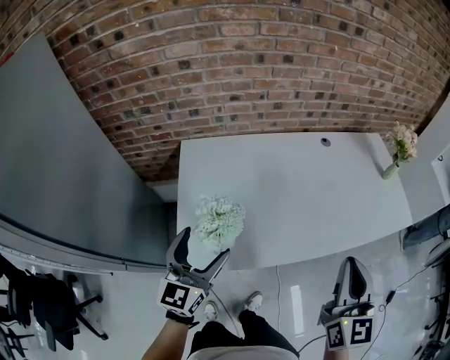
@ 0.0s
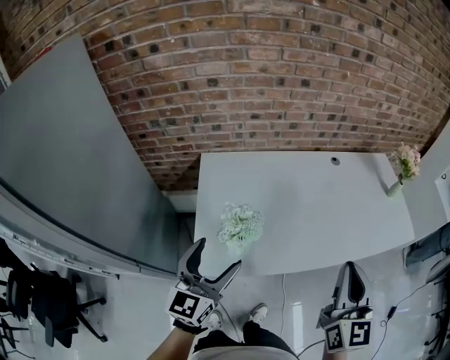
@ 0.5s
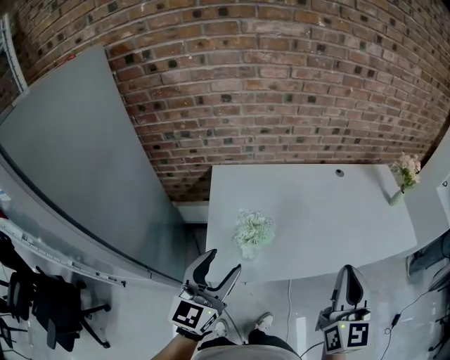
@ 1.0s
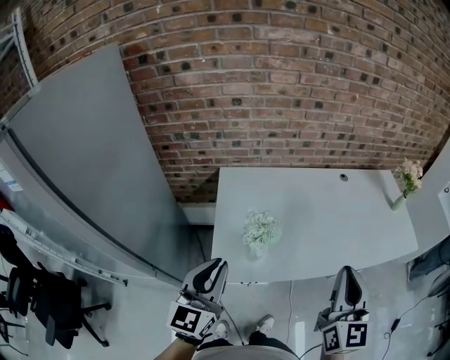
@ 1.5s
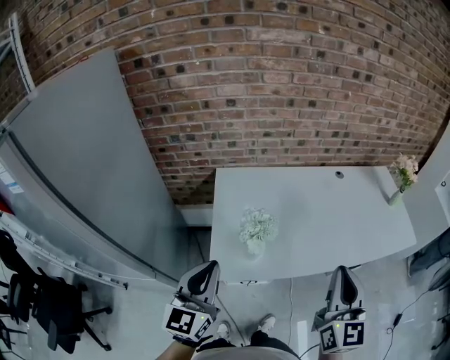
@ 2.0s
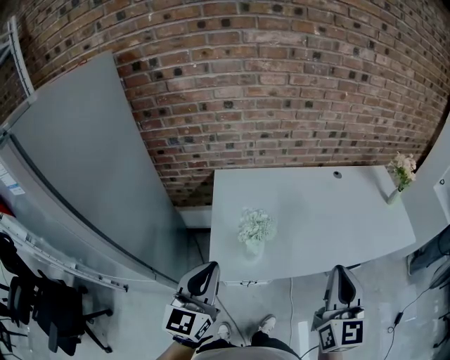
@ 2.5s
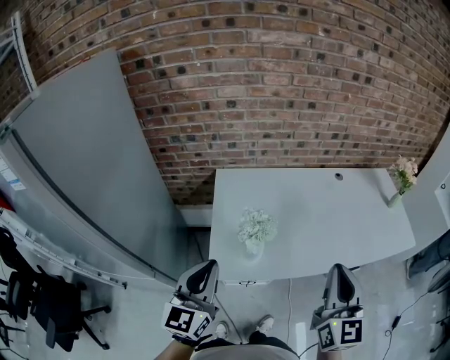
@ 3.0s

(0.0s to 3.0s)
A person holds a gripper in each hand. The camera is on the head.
0.0s - 1.5s: The right gripper goes about 10 cm to the left and upward, while the left gripper heads backward, upward and to the left, covering approximately 15 cm, and closes up.
1.5s - 3.0s: The grippers make only small movements.

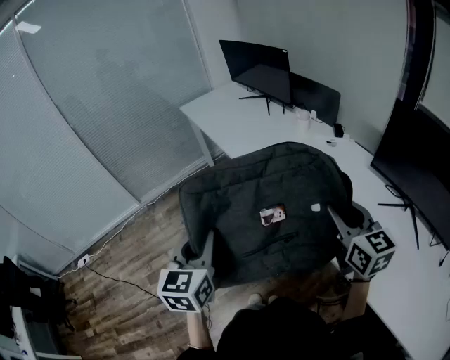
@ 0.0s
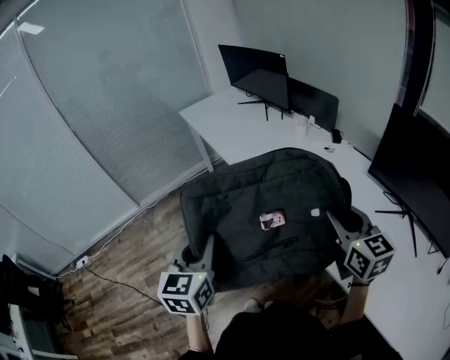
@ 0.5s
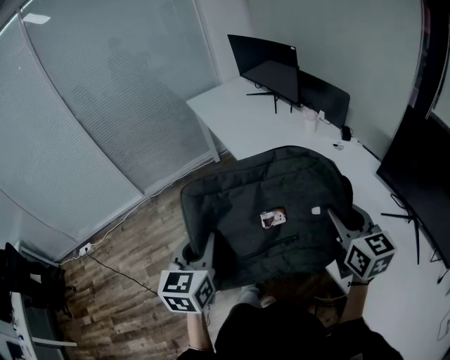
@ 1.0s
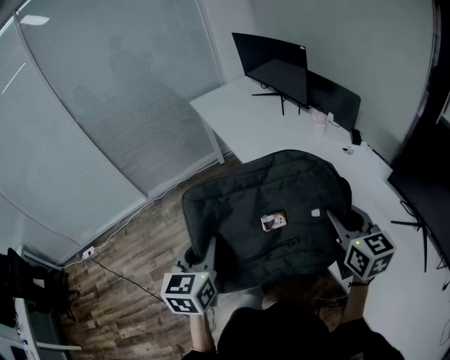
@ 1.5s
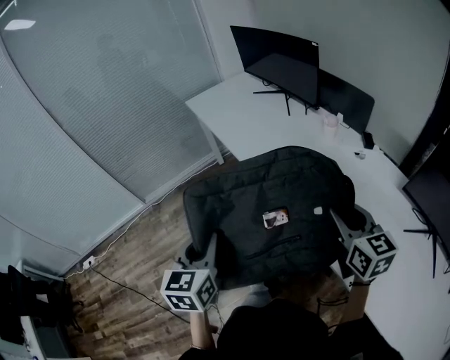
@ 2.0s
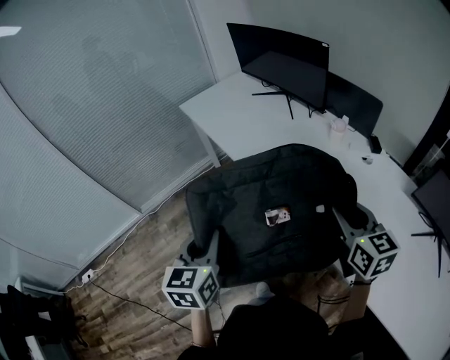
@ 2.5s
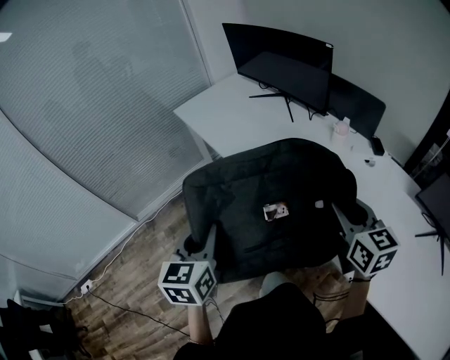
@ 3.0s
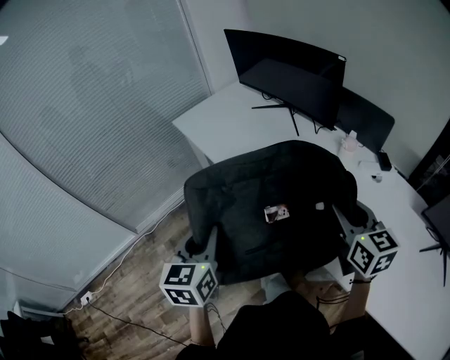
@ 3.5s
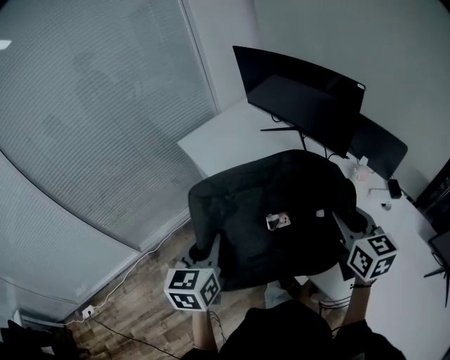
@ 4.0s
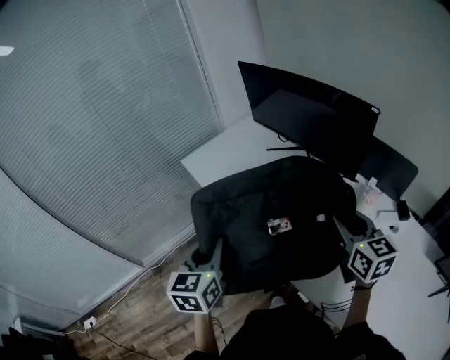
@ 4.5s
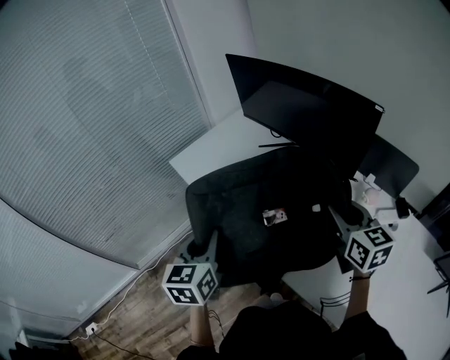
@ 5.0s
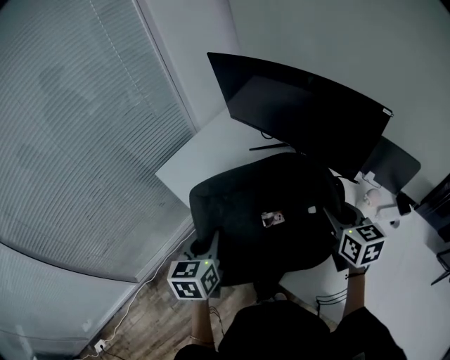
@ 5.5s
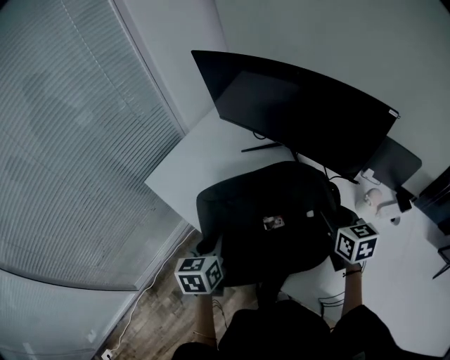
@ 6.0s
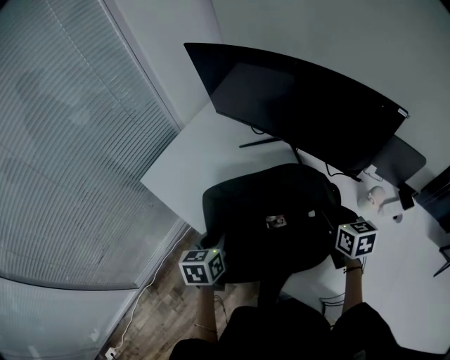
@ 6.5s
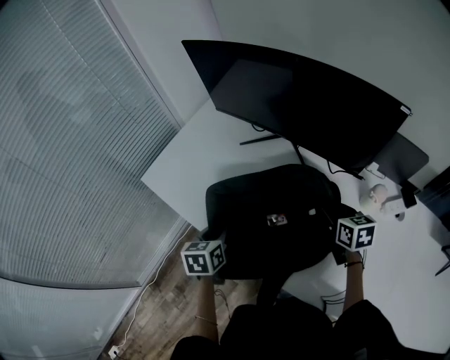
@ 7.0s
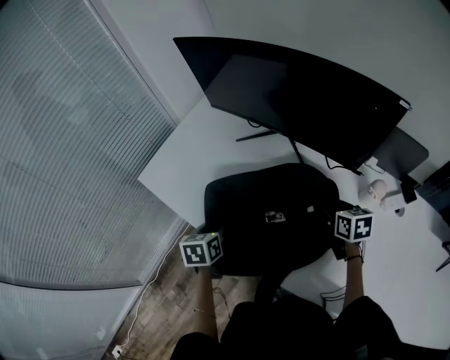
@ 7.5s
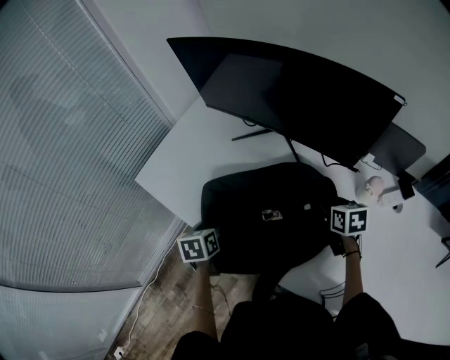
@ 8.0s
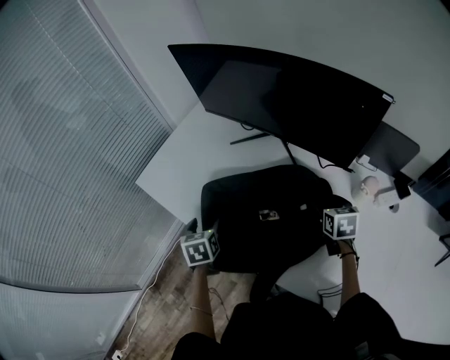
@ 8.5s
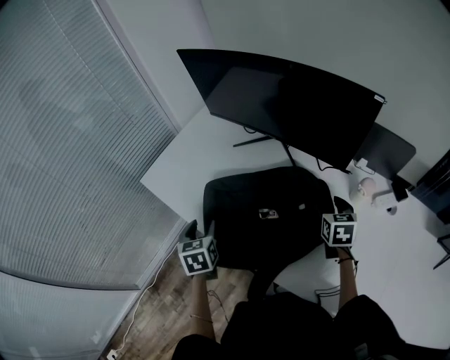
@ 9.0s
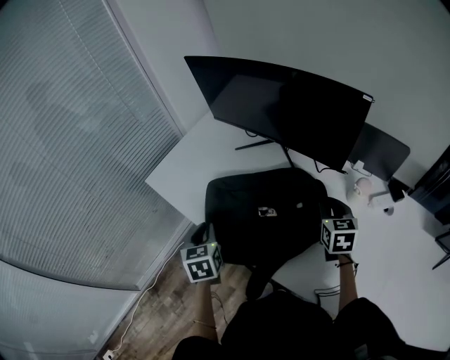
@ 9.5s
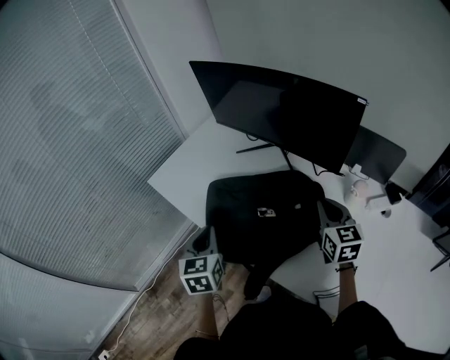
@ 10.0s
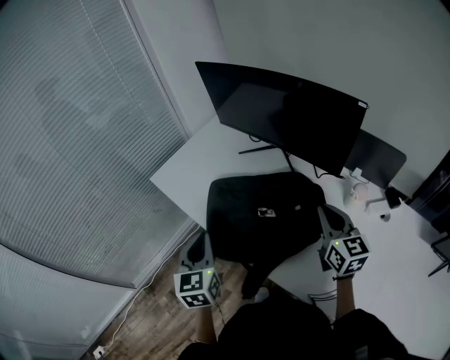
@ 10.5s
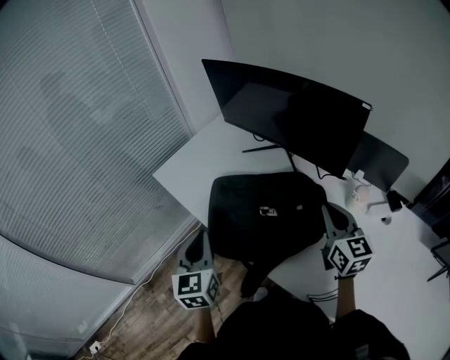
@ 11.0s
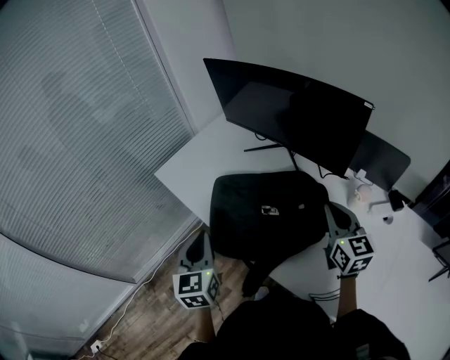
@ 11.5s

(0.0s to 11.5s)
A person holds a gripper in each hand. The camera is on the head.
0.0s - 2.0s: The two grippers go about 15 cm forward.
2.0s - 4.0s: The two grippers go roughly 30 cm forward.
4.0s - 6.0s: The right gripper goes approximately 25 cm forward and downward. Meanwhile the left gripper moves forward, about 30 cm.
6.0s - 7.5s: The right gripper heads downward, covering roughly 10 cm. Meanwhile the left gripper travels downward and forward by approximately 10 cm.
7.5s - 9.5s: The left gripper shifts some 10 cm upward and backward, turns by some 20 degrees, and opens, then closes once more. Meanwhile the right gripper travels upward by about 5 cm, changes its angle by approximately 20 degrees, and opens, then closes once more.
9.5s - 11.5s: The right gripper moves upward and backward, approximately 10 cm, and swivels roughly 30 degrees, while the left gripper goes roughly 10 cm backward and upward.

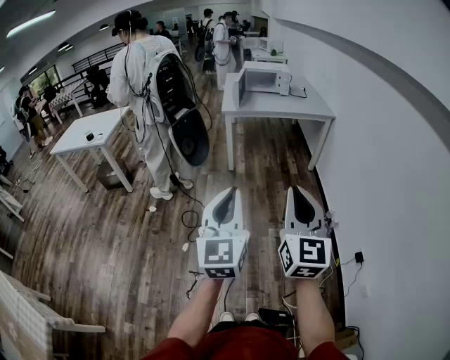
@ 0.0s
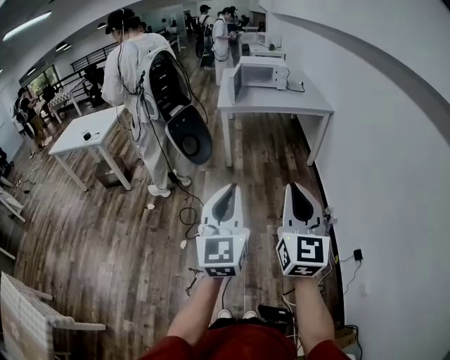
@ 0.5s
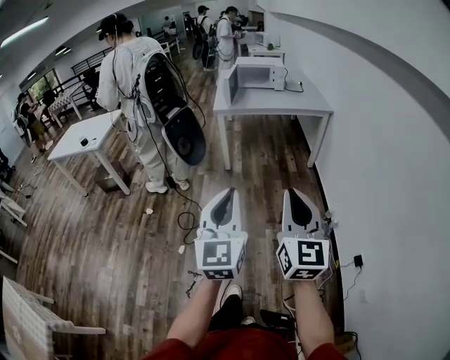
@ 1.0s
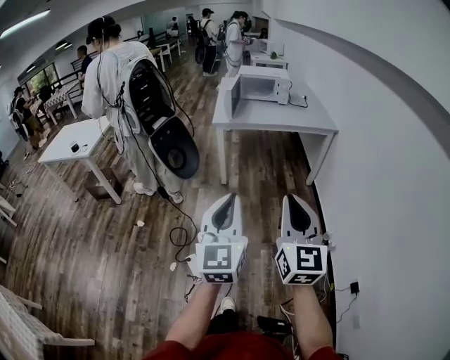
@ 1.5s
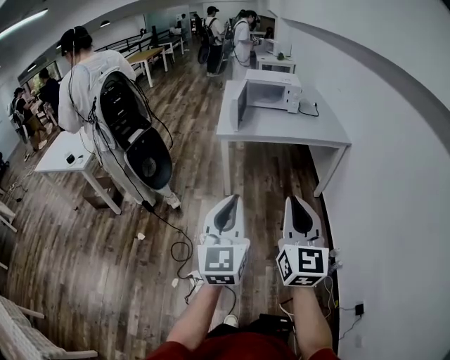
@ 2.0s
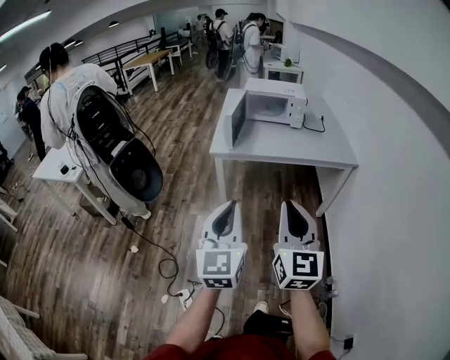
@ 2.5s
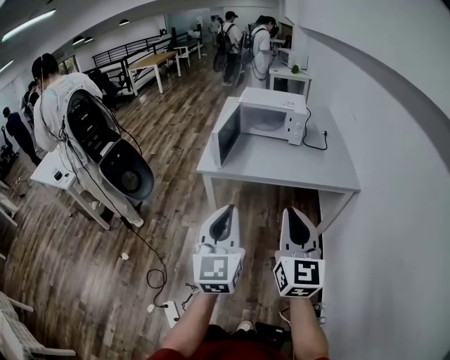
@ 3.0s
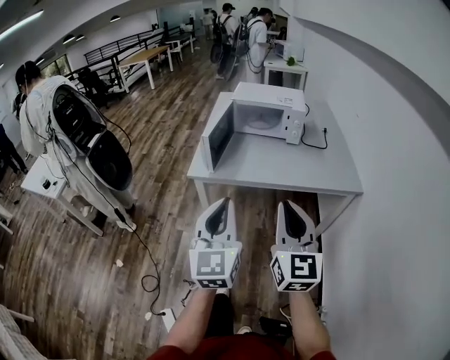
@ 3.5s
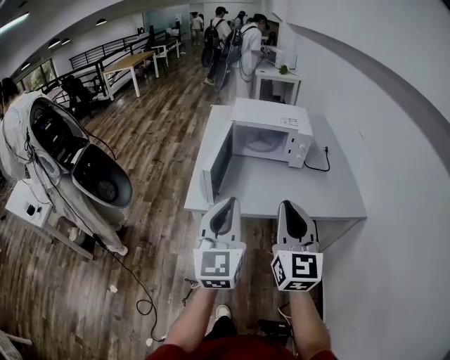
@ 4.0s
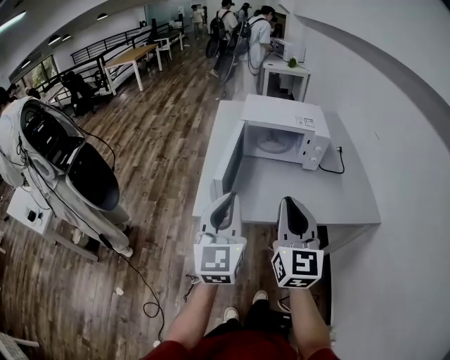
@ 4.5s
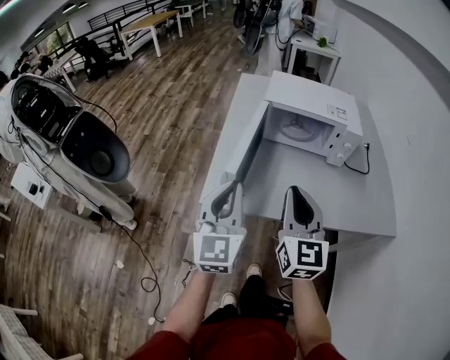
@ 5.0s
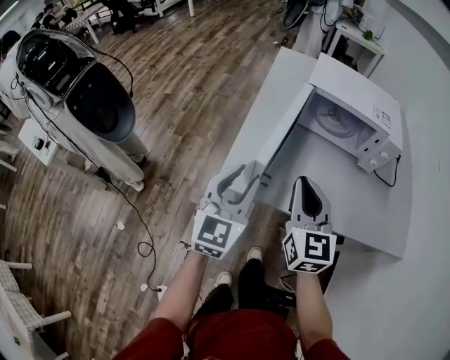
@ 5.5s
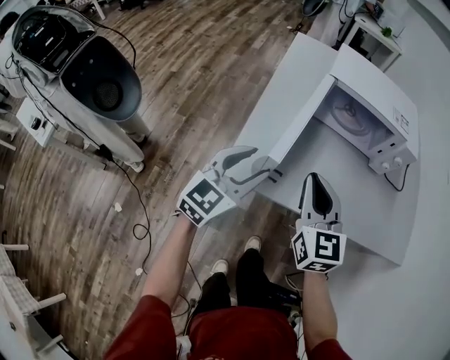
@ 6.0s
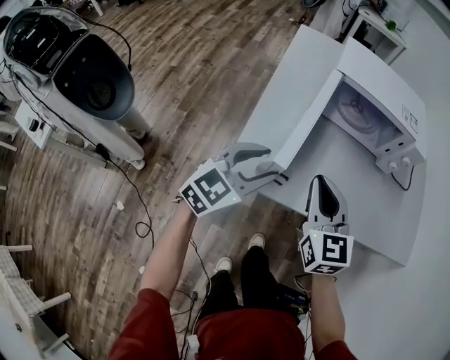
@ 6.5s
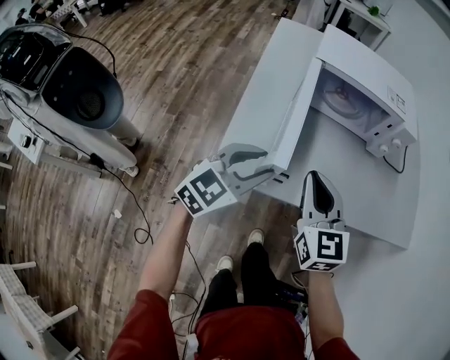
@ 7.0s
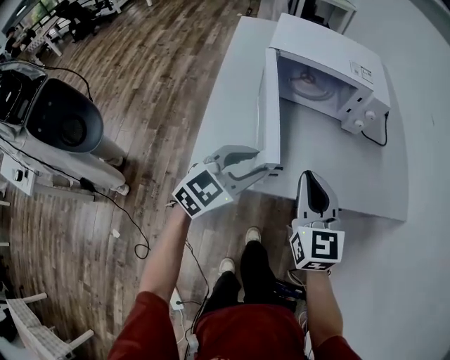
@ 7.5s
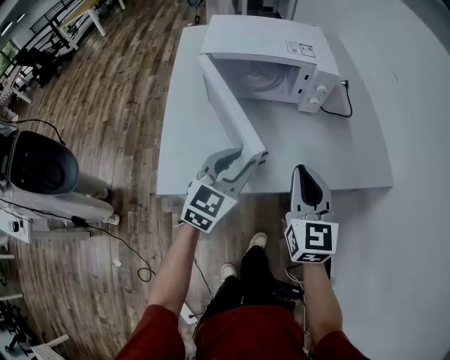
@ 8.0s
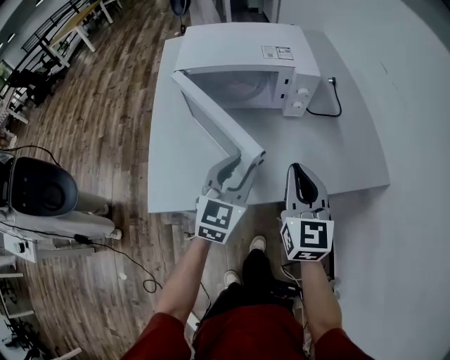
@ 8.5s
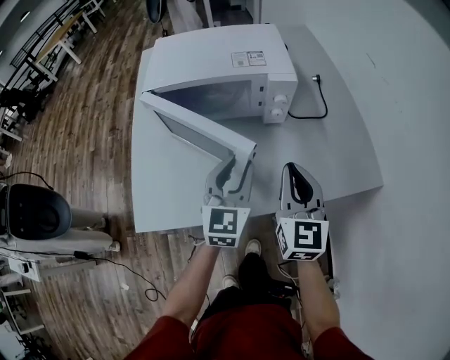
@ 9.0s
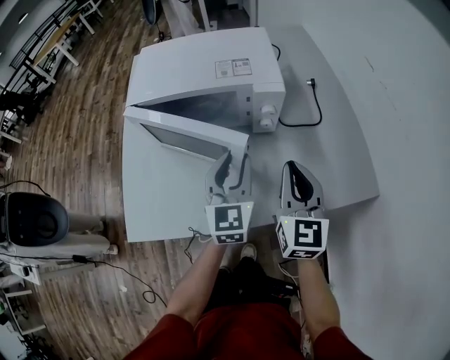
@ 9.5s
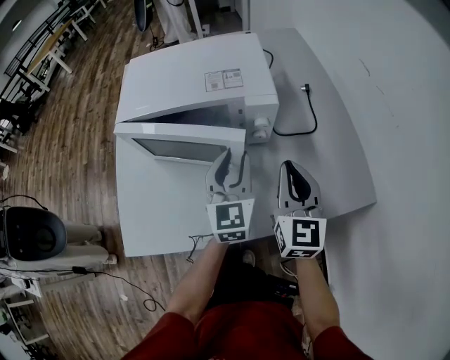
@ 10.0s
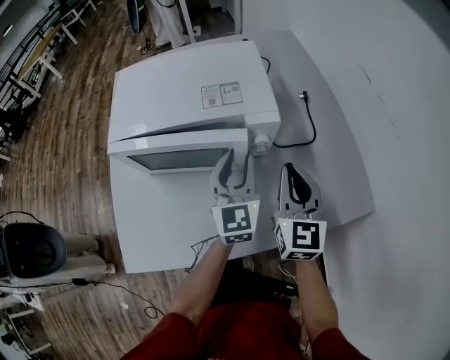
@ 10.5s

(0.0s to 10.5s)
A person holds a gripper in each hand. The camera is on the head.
0.0s - 2.0s: Both grippers travel together forward, some 35 cm.
2.0s - 4.0s: Both grippers are carried forward, roughly 60 cm.
4.0s - 6.5s: Both grippers travel together forward, downward and to the left, about 35 cm. The left gripper rotates about 40 degrees, and opens its fingers. The right gripper changes its angle by roughly 30 degrees.
6.5s - 8.5s: The left gripper heads to the right and forward, covering roughly 25 cm. Meanwhile the right gripper moves to the right, some 25 cm, and swivels approximately 30 degrees.
8.5s - 10.5s: Both grippers move forward and to the right, roughly 20 cm.

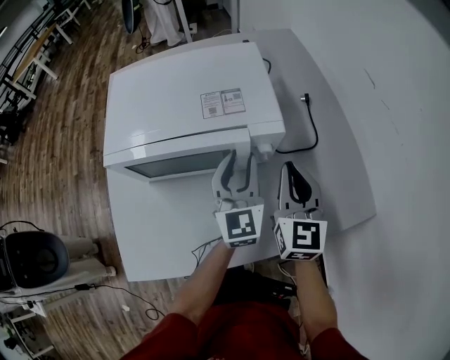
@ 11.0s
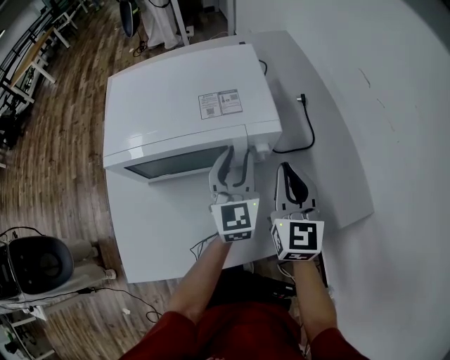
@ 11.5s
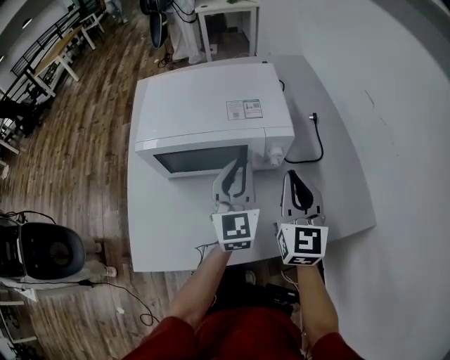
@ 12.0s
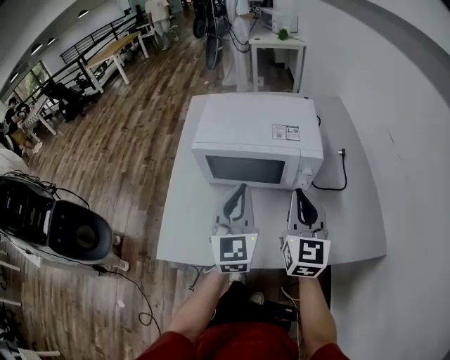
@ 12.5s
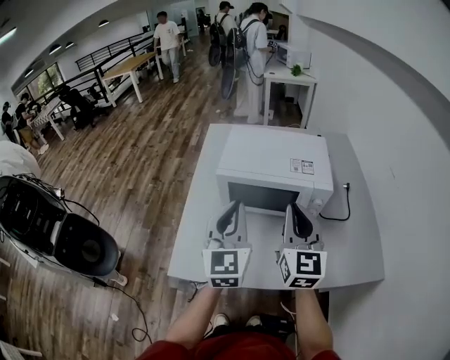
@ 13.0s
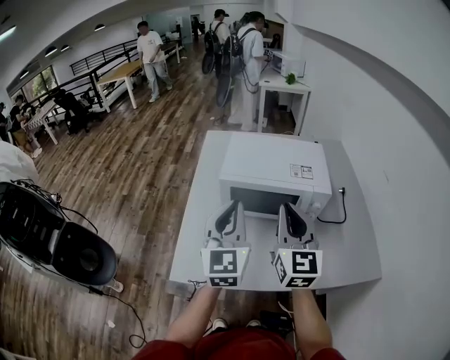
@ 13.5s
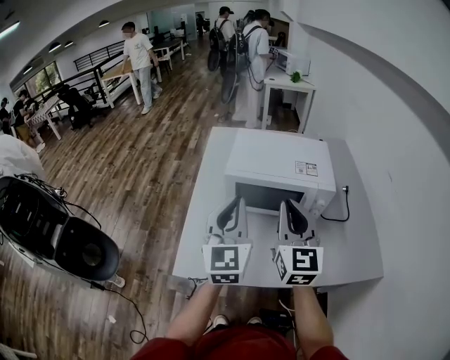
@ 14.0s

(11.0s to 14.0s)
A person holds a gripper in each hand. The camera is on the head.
11.0s - 12.5s: The right gripper heads backward, upward and to the left, covering approximately 15 cm, while the left gripper is displaced backward, to the left and upward by approximately 20 cm, and closes up.
12.5s - 14.0s: The grippers both shift to the left and upward by some 15 cm.
